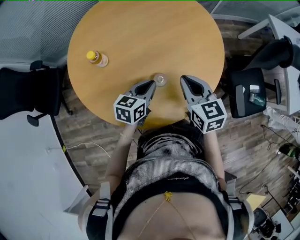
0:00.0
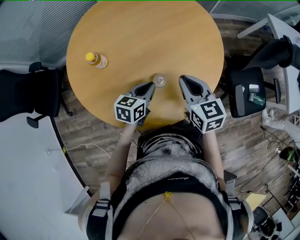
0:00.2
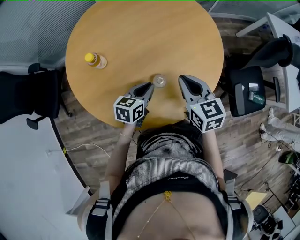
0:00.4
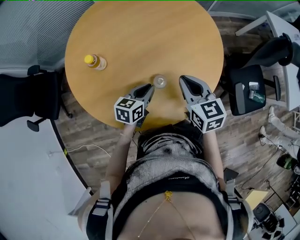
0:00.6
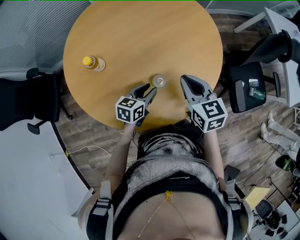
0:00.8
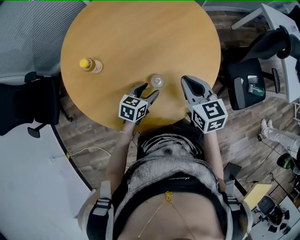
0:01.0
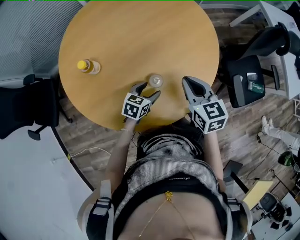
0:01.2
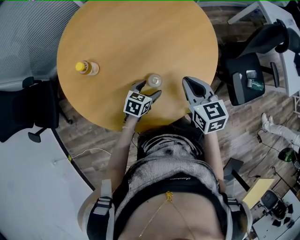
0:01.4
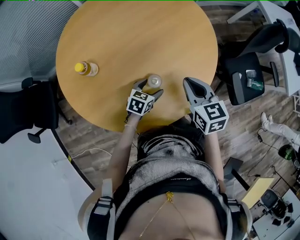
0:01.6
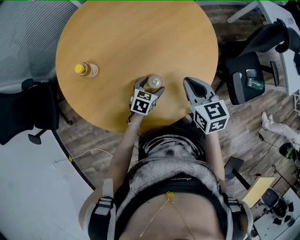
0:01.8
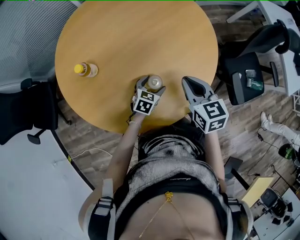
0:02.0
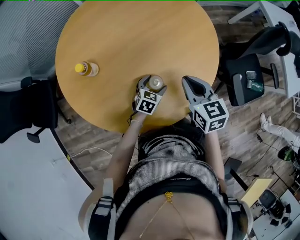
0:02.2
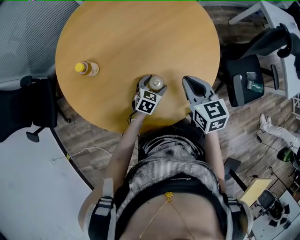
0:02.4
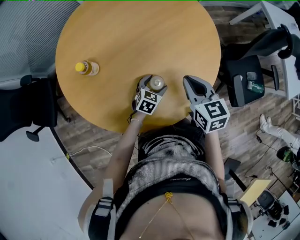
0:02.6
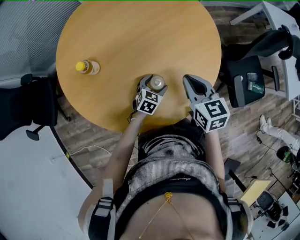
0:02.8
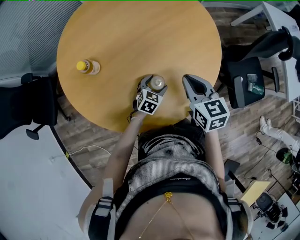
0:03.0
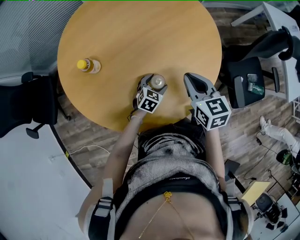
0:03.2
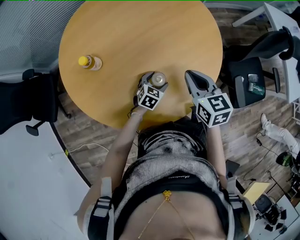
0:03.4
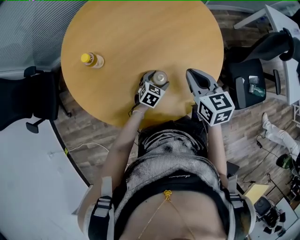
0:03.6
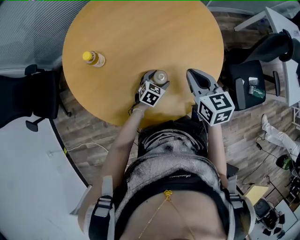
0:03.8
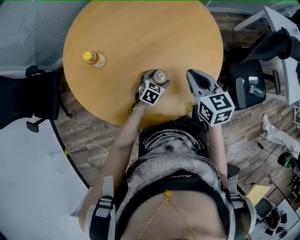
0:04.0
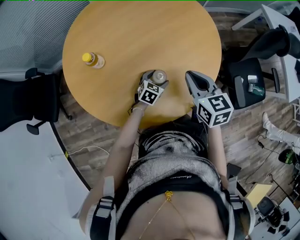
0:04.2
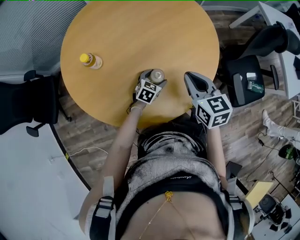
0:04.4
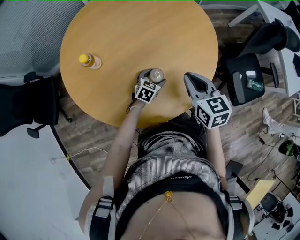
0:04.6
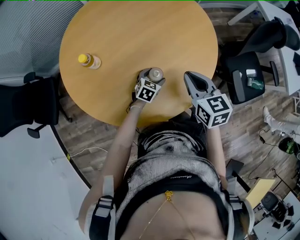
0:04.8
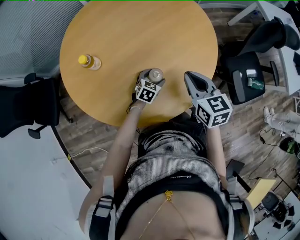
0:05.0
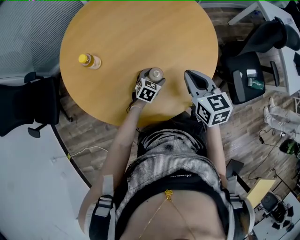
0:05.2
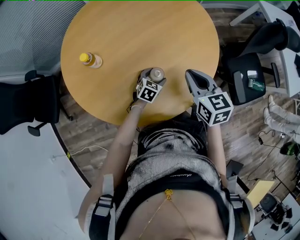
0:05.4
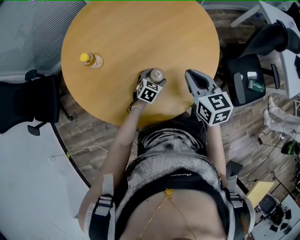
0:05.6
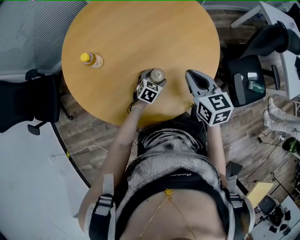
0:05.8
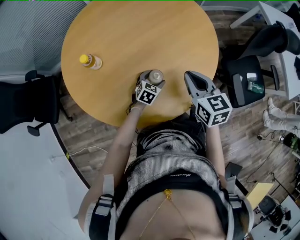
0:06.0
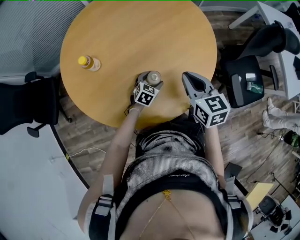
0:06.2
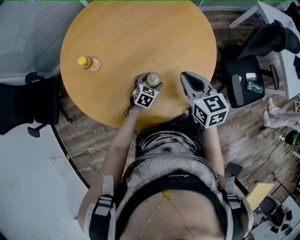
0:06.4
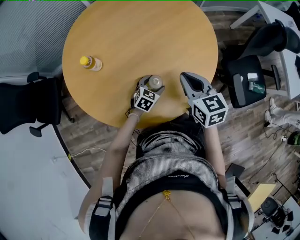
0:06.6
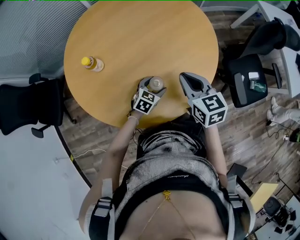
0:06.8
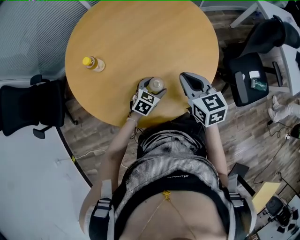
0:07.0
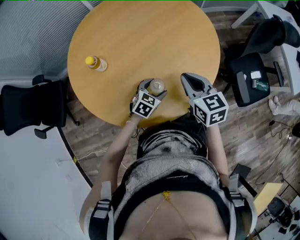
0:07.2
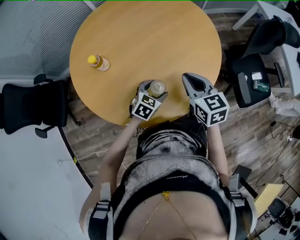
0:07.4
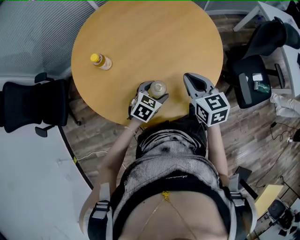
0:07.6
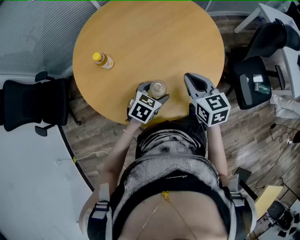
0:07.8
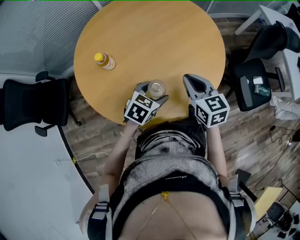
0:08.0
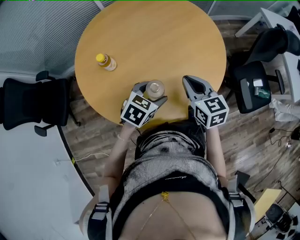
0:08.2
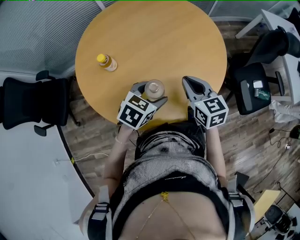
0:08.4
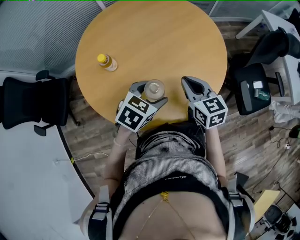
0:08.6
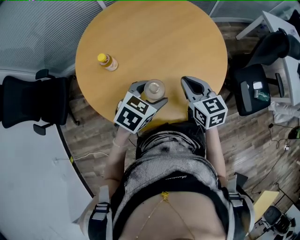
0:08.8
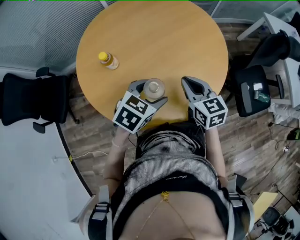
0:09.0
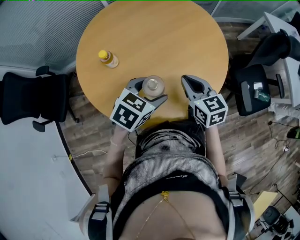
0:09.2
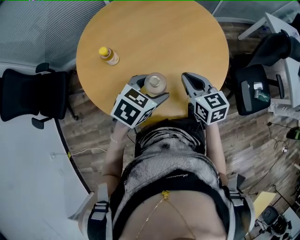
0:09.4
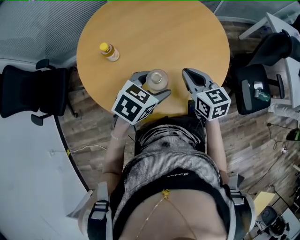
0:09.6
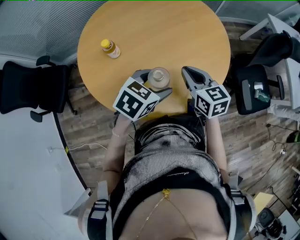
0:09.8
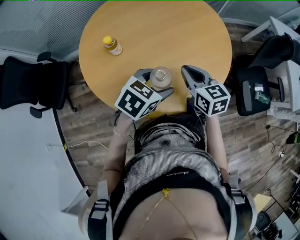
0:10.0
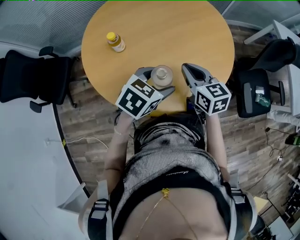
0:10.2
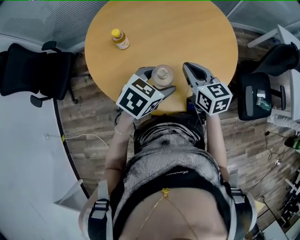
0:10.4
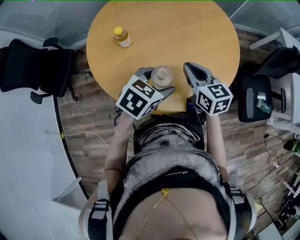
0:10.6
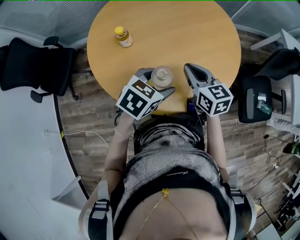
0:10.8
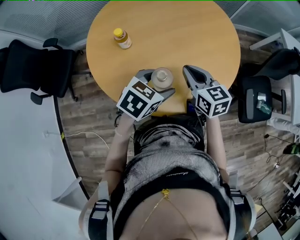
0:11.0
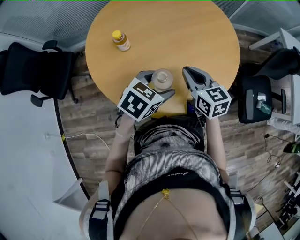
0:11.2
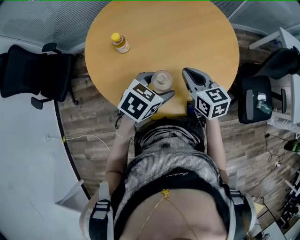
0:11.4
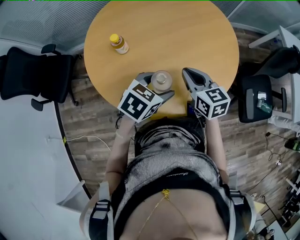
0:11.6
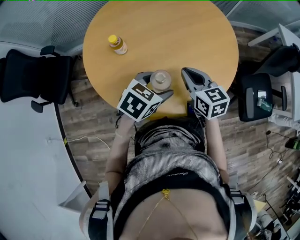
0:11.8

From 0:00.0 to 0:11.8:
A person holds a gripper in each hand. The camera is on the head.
From 0:00.0 to 0:01.4: The left gripper goes some 10 cm downward, turns by some 20 degrees, and opens up.
From 0:01.4 to 0:03.0: The left gripper changes place by about 5 cm.
From 0:03.0 to 0:06.0: The grippers stay close to where they were, moving slightly.
From 0:06.0 to 0:07.4: The left gripper is displaced upward and backward by some 10 cm.
From 0:07.4 to 0:08.8: The left gripper is displaced upward by approximately 15 cm.
From 0:08.8 to 0:11.8: The grippers make only small movements.

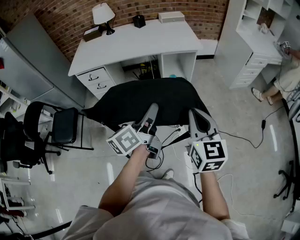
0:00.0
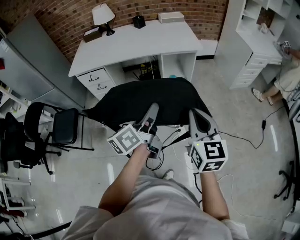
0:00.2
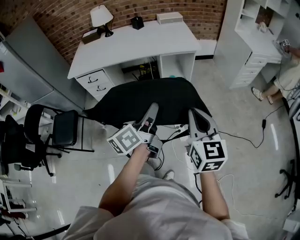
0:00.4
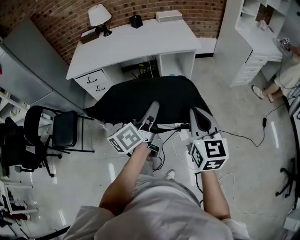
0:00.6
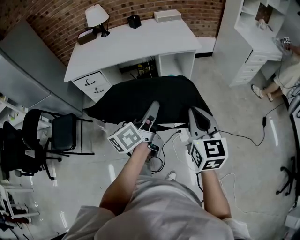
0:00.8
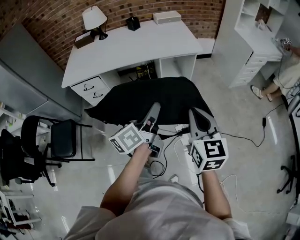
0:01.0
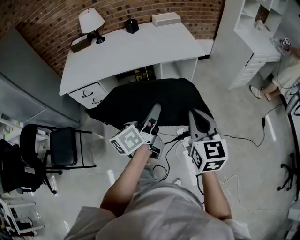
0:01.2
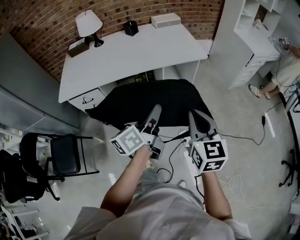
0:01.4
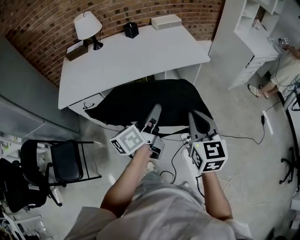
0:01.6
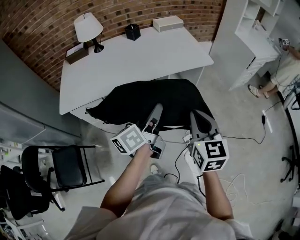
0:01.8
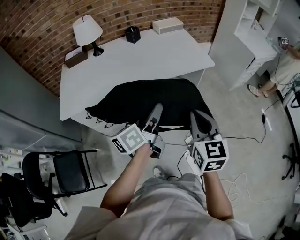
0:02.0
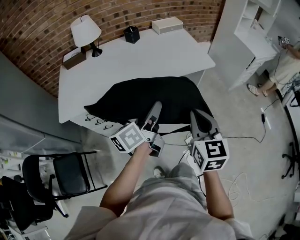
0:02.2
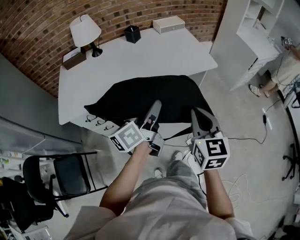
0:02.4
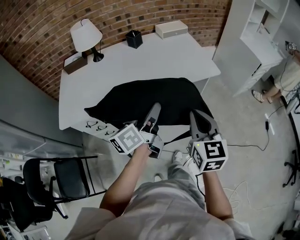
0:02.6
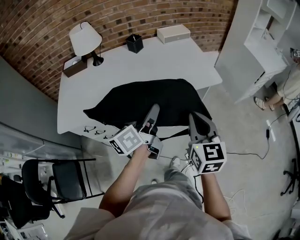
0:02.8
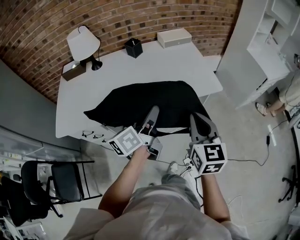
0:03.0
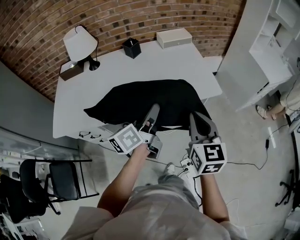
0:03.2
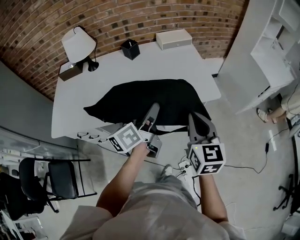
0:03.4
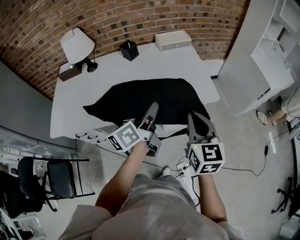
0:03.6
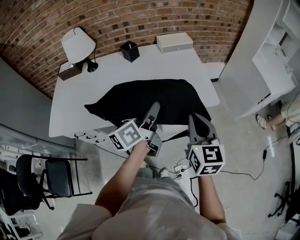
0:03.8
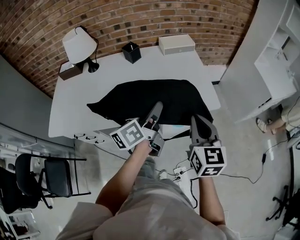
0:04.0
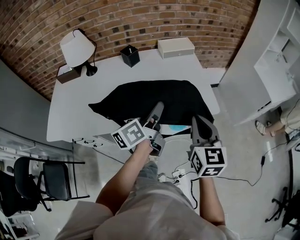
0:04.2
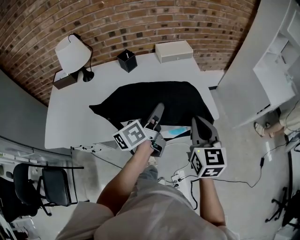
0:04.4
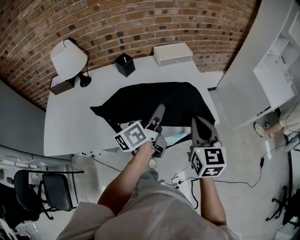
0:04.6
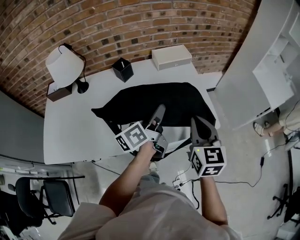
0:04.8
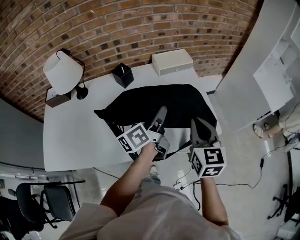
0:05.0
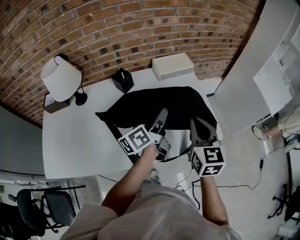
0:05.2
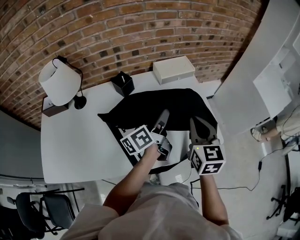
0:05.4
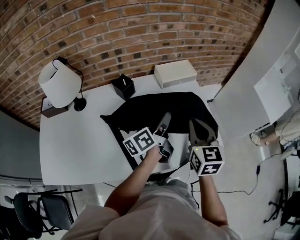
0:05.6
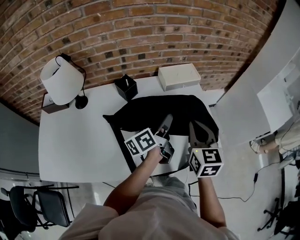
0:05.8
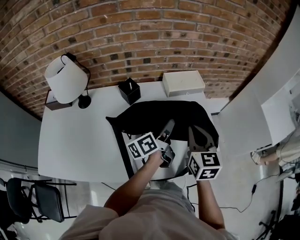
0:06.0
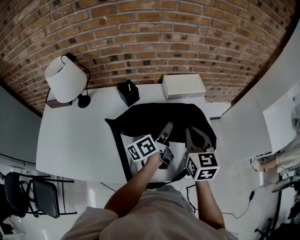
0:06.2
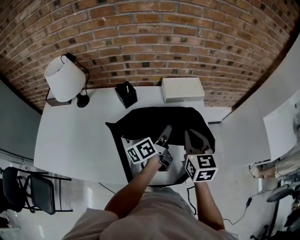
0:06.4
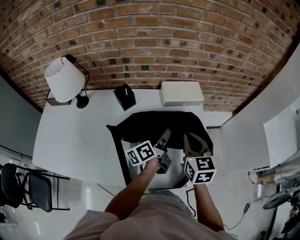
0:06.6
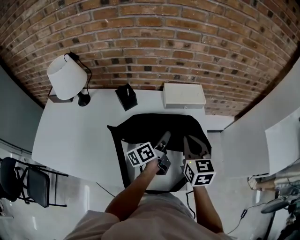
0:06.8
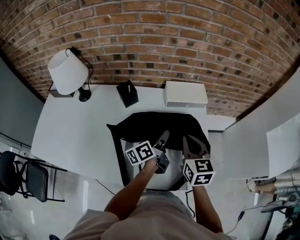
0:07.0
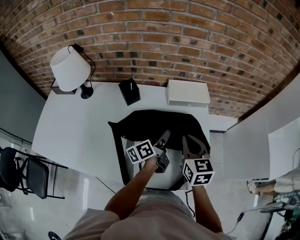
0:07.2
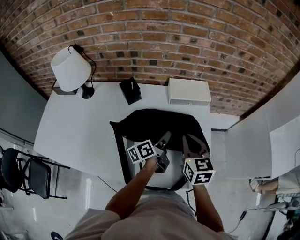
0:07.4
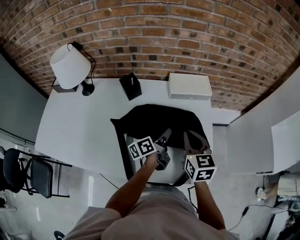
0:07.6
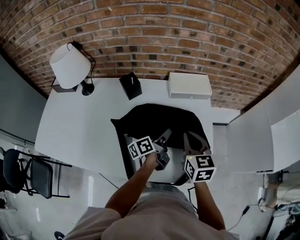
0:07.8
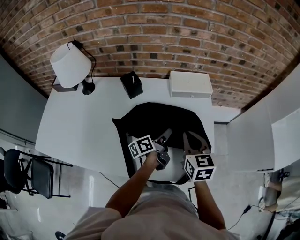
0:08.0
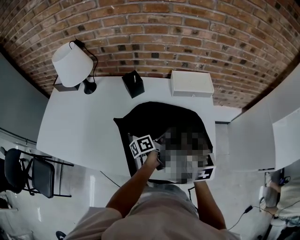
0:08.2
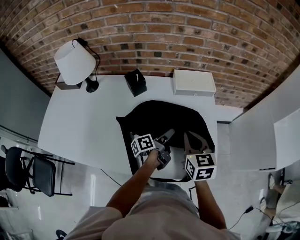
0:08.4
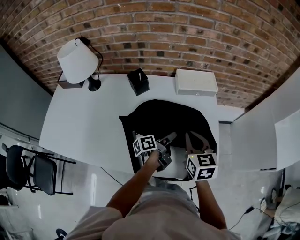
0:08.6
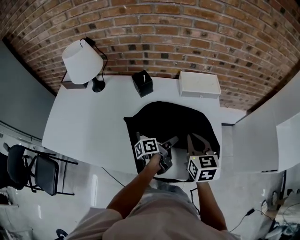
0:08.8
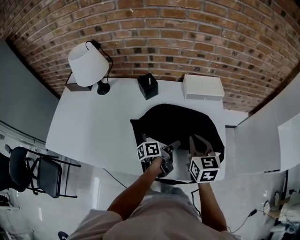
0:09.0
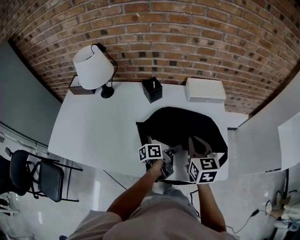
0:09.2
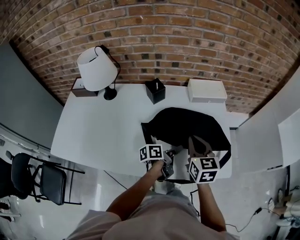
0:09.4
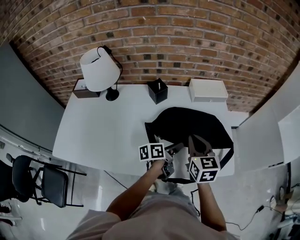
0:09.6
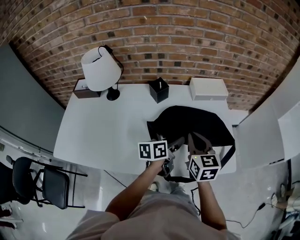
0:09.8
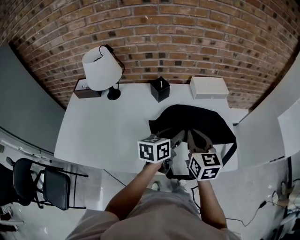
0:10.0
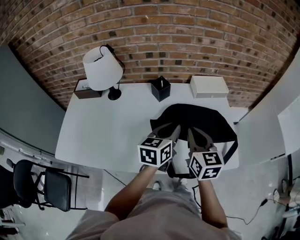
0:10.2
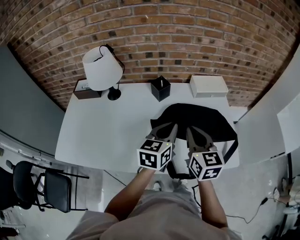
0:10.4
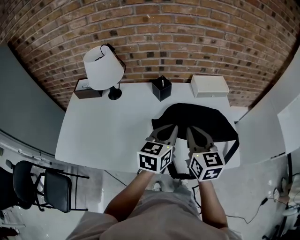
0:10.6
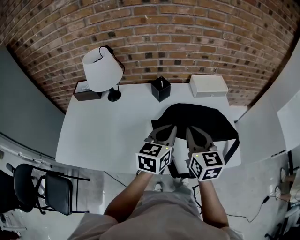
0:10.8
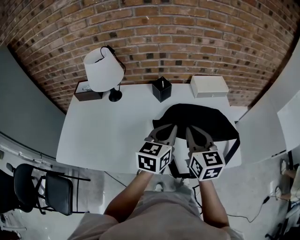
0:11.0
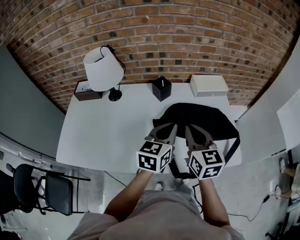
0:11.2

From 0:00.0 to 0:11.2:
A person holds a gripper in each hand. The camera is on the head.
From 0:00.0 to 0:01.6: Both grippers travel together forward and to the left, about 25 cm.
From 0:01.6 to 0:03.2: The two grippers go some 25 cm forward.
From 0:03.2 to 0:04.8: The grippers both shift forward by approximately 20 cm.
From 0:04.8 to 0:06.4: The left gripper shifts approximately 20 cm forward and downward, while the right gripper travels forward by some 20 cm.
From 0:06.4 to 0:08.0: The left gripper moves downward, roughly 10 cm. The right gripper travels downward by some 5 cm.
From 0:08.0 to 0:09.6: The right gripper moves to the left and backward, about 15 cm, while the left gripper heads backward and to the left, covering about 10 cm, and swivels roughly 20 degrees.
From 0:09.6 to 0:11.2: The right gripper travels to the left and upward by some 10 cm; the left gripper moves upward and to the left, roughly 20 cm, rotates around the line of its fingers by about 50 degrees, clockwise from behind, and closes its fingers.

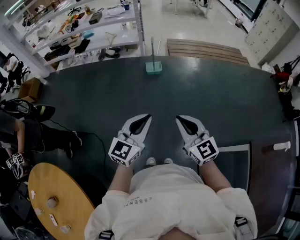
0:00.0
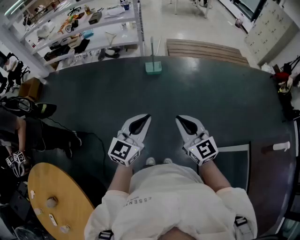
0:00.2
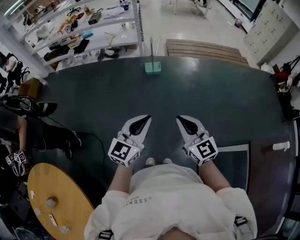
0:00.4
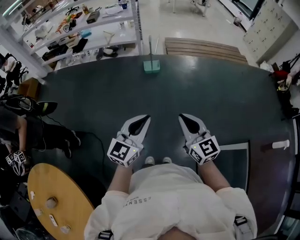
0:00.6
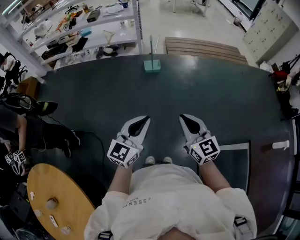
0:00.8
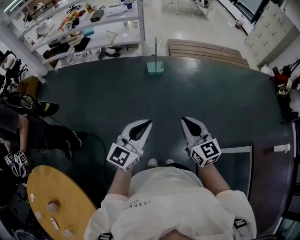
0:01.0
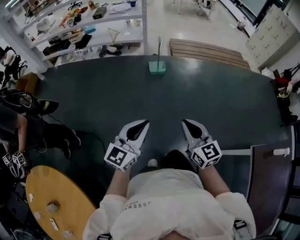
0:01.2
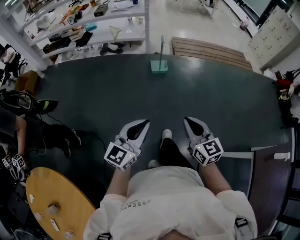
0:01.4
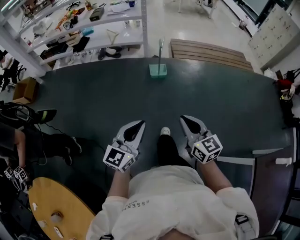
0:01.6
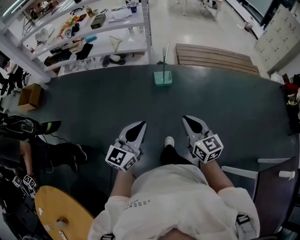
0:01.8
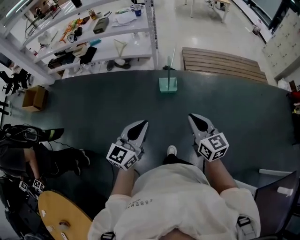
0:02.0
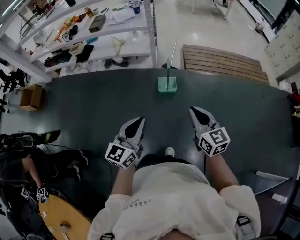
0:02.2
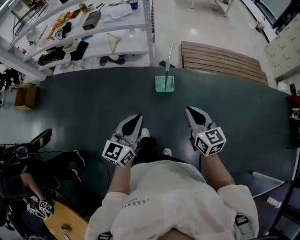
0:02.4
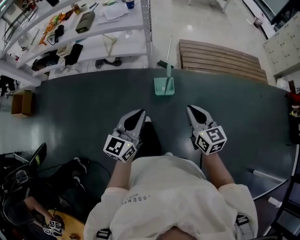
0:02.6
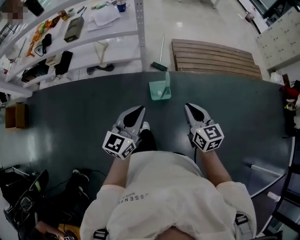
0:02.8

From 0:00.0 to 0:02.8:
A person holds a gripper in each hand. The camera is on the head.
From 0:00.0 to 0:01.4: The left gripper shifts some 10 cm to the left; the right gripper is displaced forward, downward and to the left by about 10 cm.
From 0:01.4 to 0:02.8: The two grippers travel together, forward, about 60 cm.
